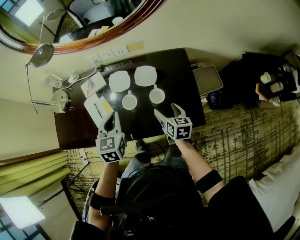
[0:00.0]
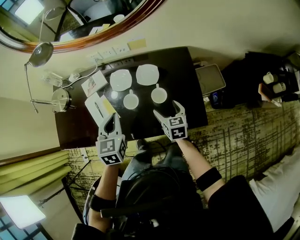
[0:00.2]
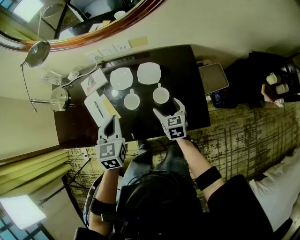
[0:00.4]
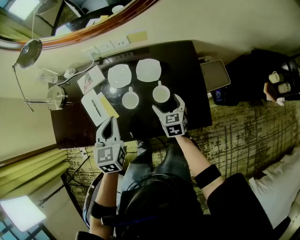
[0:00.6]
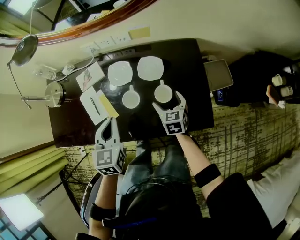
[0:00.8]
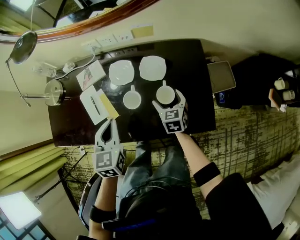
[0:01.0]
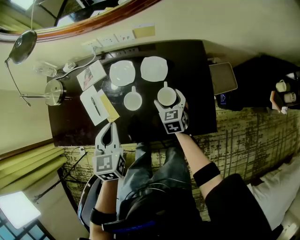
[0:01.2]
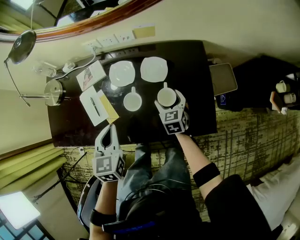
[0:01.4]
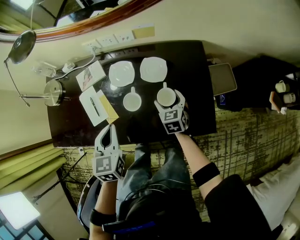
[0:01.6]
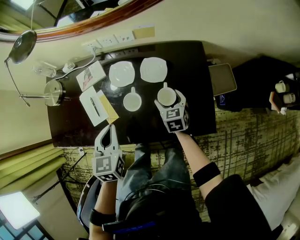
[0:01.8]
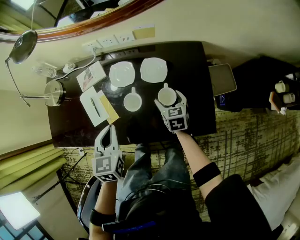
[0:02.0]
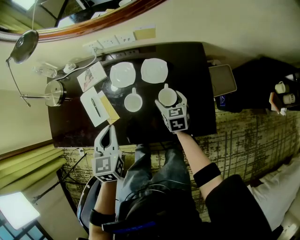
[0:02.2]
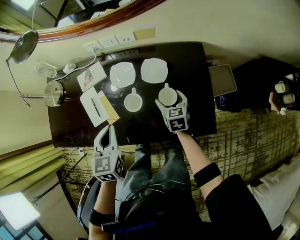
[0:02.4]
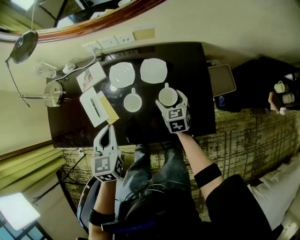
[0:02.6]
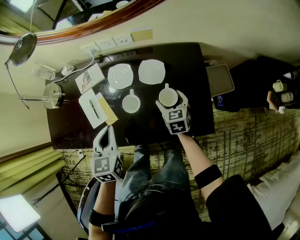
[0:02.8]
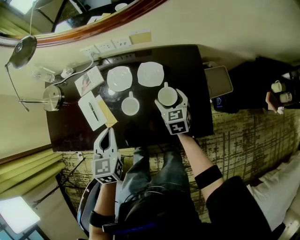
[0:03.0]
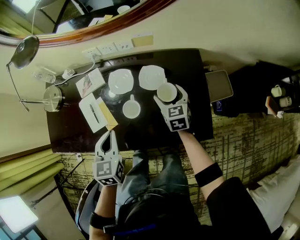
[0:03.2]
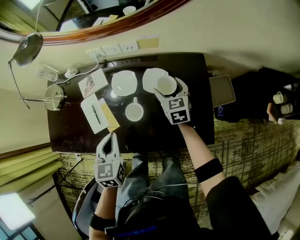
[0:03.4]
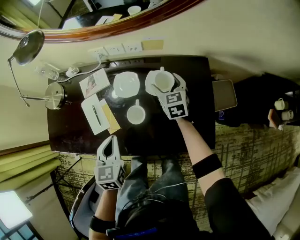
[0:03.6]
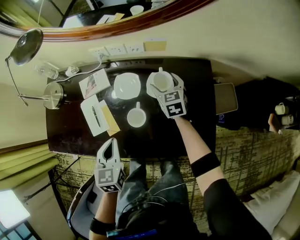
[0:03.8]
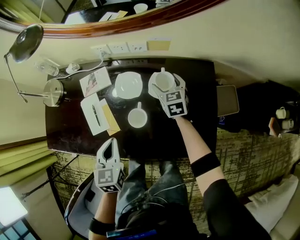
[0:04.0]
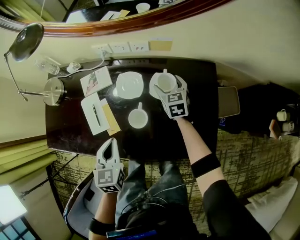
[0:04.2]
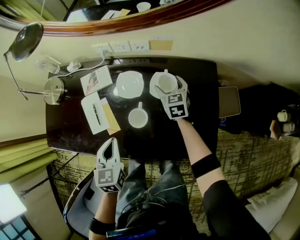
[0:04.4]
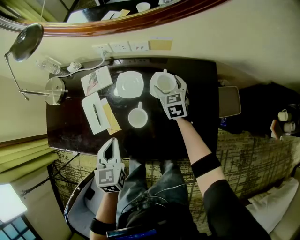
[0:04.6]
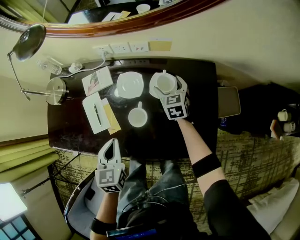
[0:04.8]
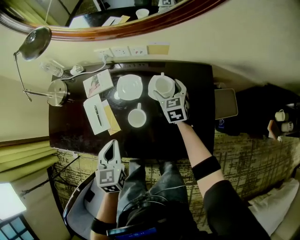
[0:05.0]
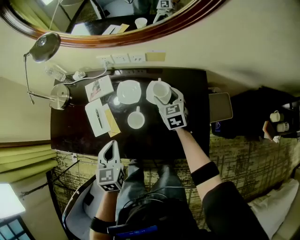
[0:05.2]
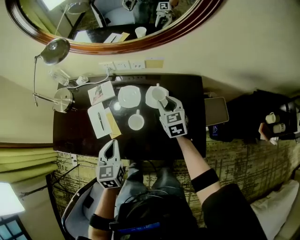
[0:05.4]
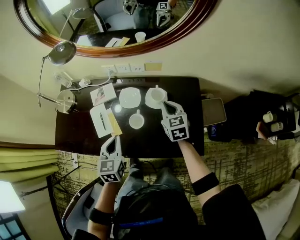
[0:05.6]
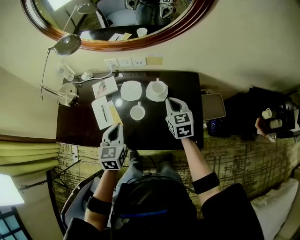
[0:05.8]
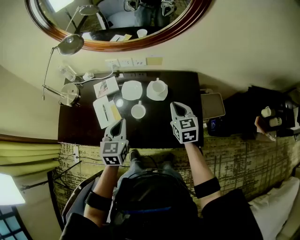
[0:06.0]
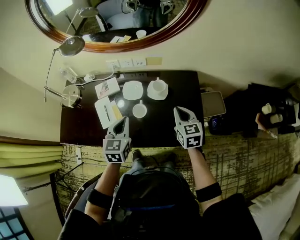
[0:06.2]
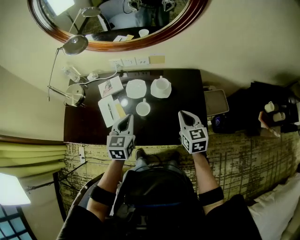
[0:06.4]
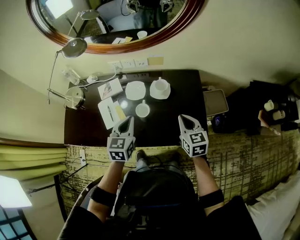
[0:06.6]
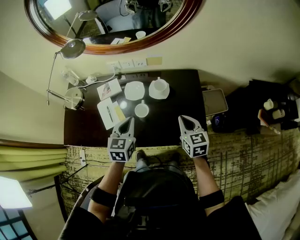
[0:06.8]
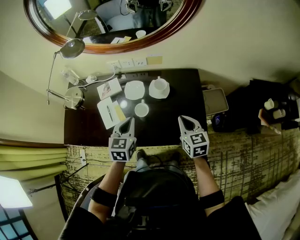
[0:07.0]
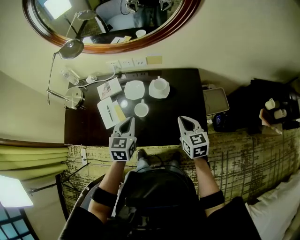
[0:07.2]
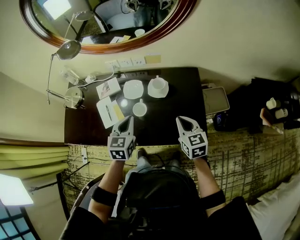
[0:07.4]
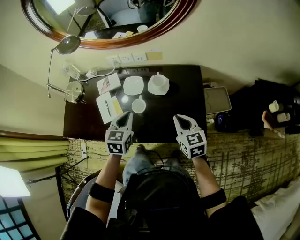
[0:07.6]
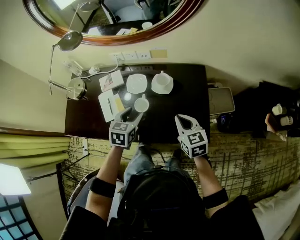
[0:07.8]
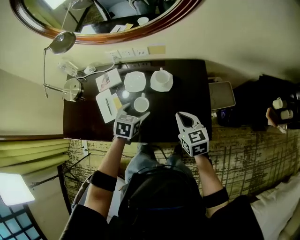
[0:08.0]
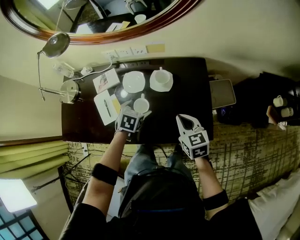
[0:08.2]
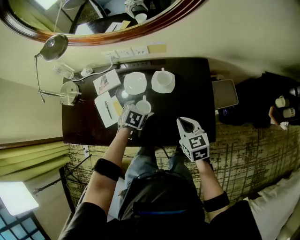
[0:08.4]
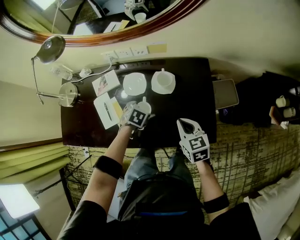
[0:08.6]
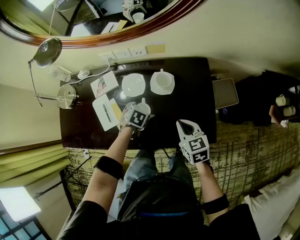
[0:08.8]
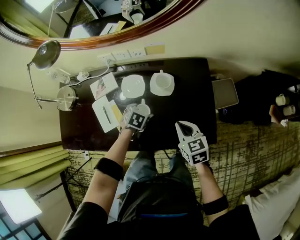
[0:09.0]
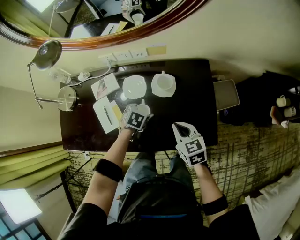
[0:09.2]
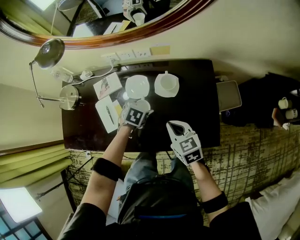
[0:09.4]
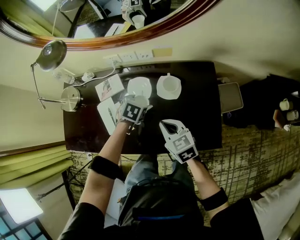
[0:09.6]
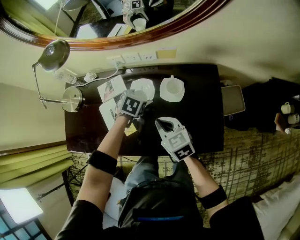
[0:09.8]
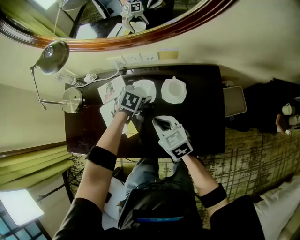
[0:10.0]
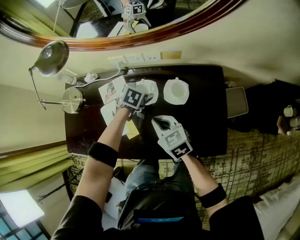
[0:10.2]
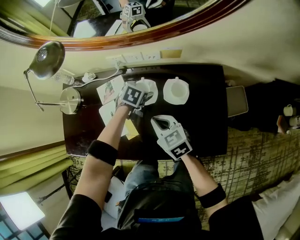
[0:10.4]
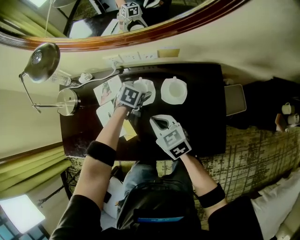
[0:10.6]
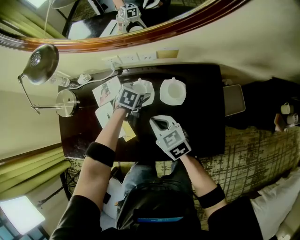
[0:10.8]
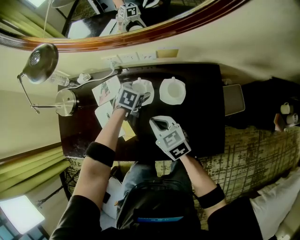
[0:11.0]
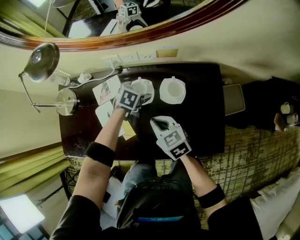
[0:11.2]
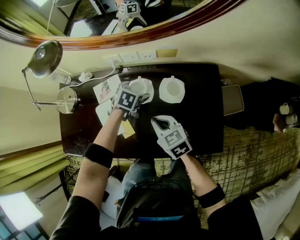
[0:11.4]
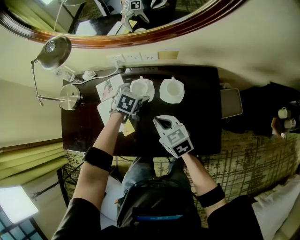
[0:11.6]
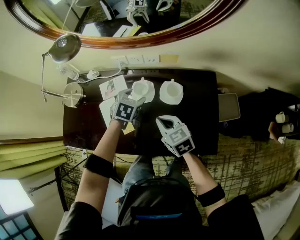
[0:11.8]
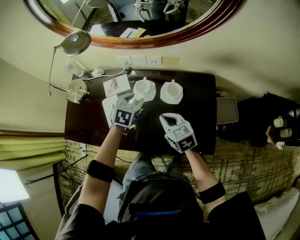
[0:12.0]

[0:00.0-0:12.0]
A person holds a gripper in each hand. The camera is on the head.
0:00.0 to 0:01.6: The left gripper shifts approximately 5 cm downward. The right gripper heads downward and forward, covering roughly 15 cm, and rotates approximately 30 degrees.
0:01.6 to 0:03.0: The right gripper ends up about 5 cm from where it was.
0:03.0 to 0:04.4: The right gripper moves forward, some 15 cm.
0:04.4 to 0:06.0: The left gripper heads upward, covering about 10 cm. The right gripper goes some 25 cm upward and backward, and closes up.
0:06.0 to 0:07.6: The right gripper is displaced backward by roughly 10 cm; the left gripper ends up roughly 5 cm from where it was.
0:07.6 to 0:09.0: The right gripper goes some 10 cm downward. Meanwhile the left gripper goes approximately 20 cm downward, angles its fingers downward, by about 30 degrees, and opens.
0:09.0 to 0:10.4: The right gripper goes some 20 cm to the left and forward. Meanwhile the left gripper is displaced forward by approximately 15 cm.
0:10.4 to 0:12.0: The left gripper moves upward and backward, approximately 15 cm, and closes its fingers. Meanwhile the right gripper is displaced to the right by some 5 cm.

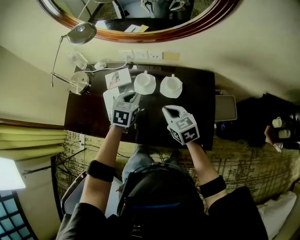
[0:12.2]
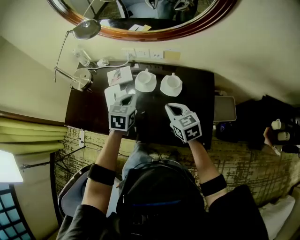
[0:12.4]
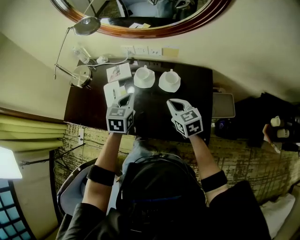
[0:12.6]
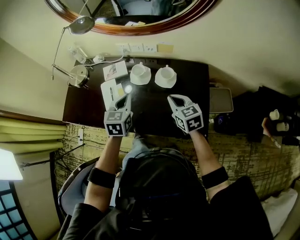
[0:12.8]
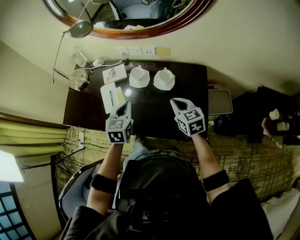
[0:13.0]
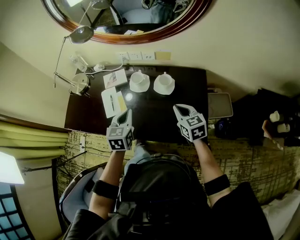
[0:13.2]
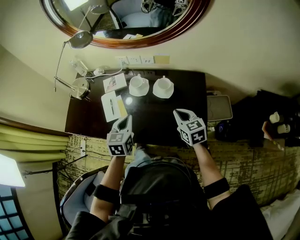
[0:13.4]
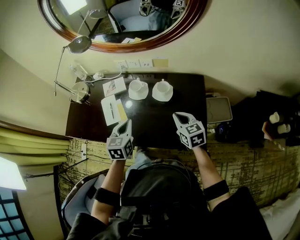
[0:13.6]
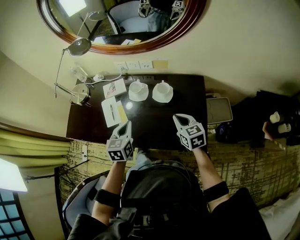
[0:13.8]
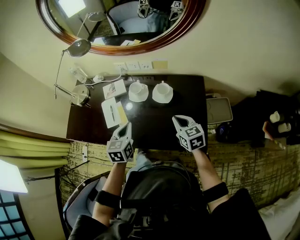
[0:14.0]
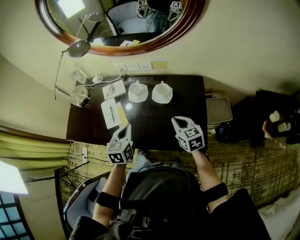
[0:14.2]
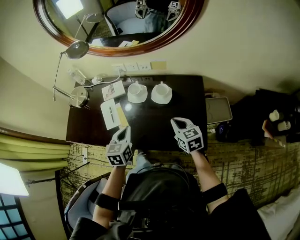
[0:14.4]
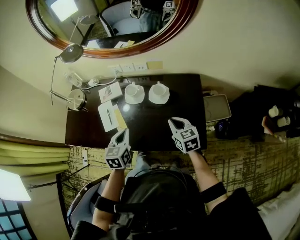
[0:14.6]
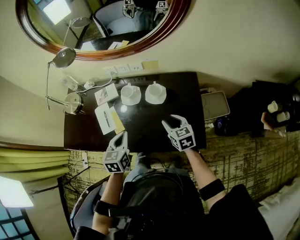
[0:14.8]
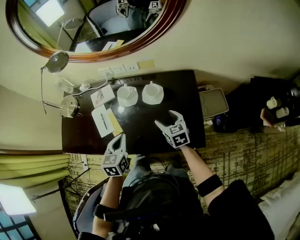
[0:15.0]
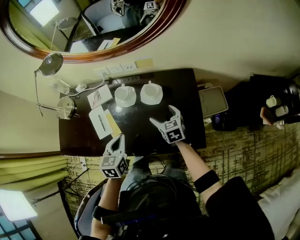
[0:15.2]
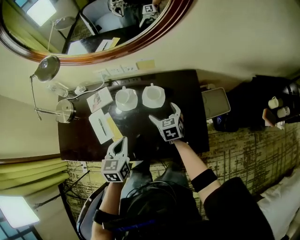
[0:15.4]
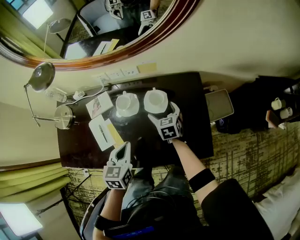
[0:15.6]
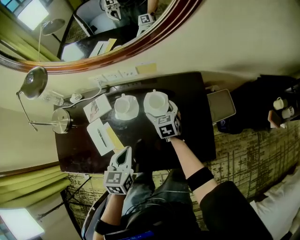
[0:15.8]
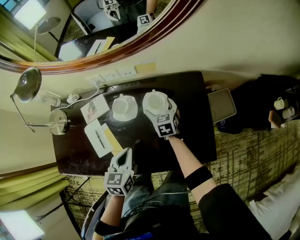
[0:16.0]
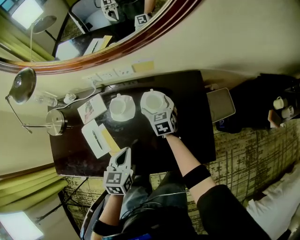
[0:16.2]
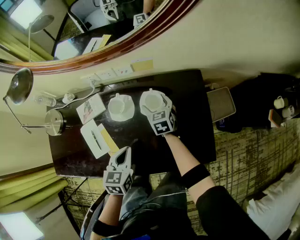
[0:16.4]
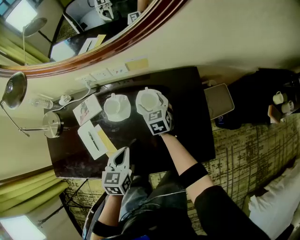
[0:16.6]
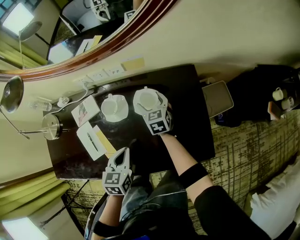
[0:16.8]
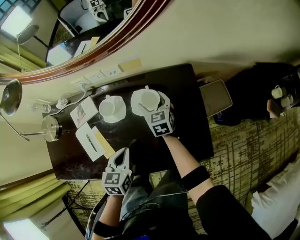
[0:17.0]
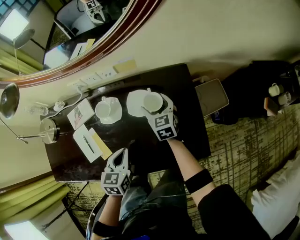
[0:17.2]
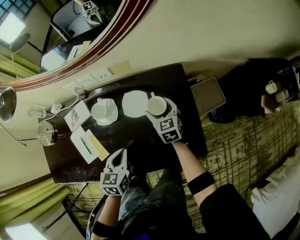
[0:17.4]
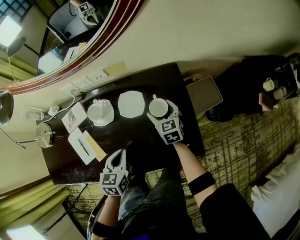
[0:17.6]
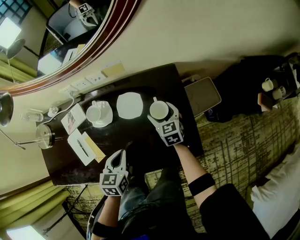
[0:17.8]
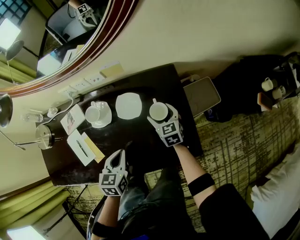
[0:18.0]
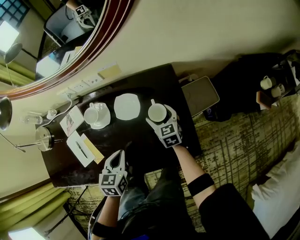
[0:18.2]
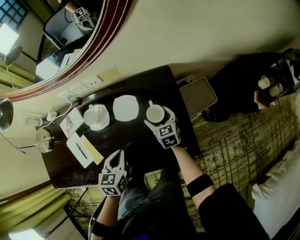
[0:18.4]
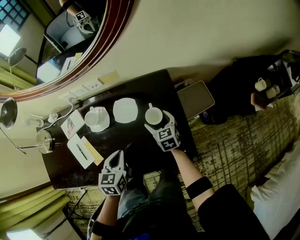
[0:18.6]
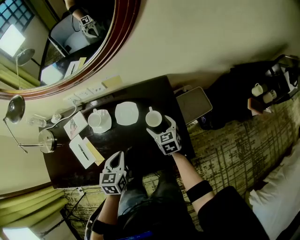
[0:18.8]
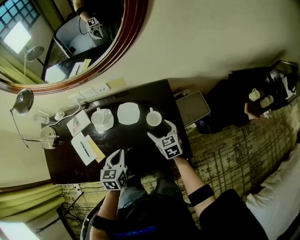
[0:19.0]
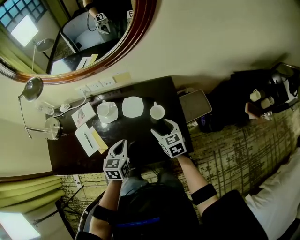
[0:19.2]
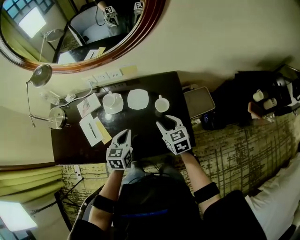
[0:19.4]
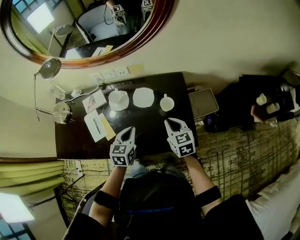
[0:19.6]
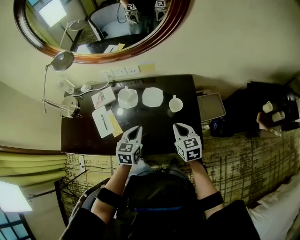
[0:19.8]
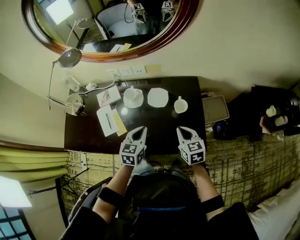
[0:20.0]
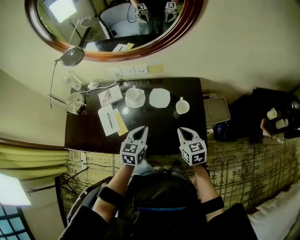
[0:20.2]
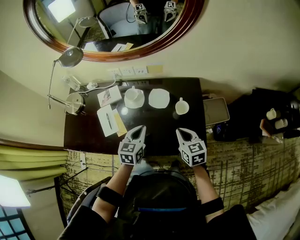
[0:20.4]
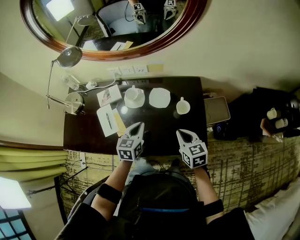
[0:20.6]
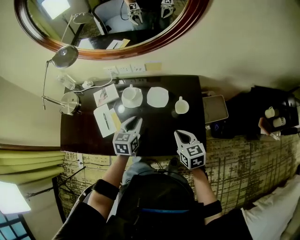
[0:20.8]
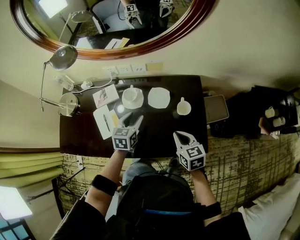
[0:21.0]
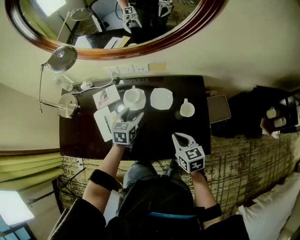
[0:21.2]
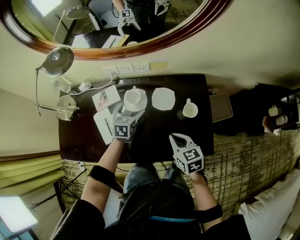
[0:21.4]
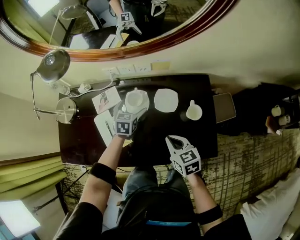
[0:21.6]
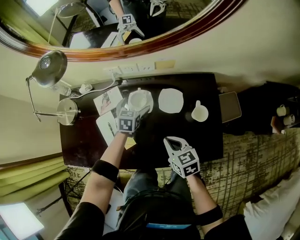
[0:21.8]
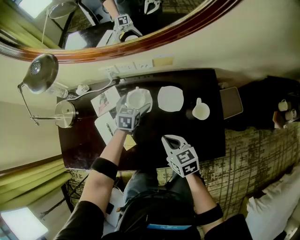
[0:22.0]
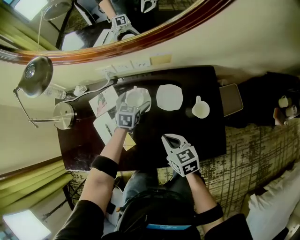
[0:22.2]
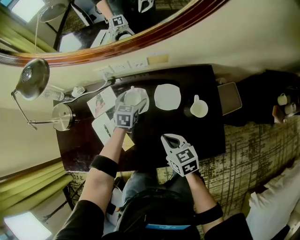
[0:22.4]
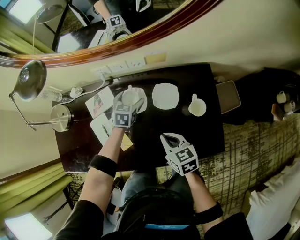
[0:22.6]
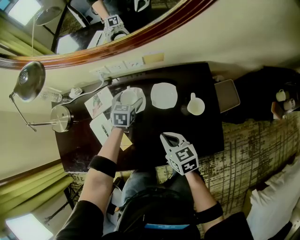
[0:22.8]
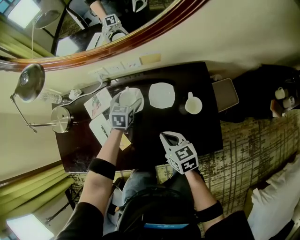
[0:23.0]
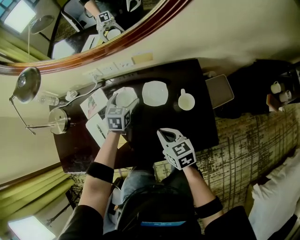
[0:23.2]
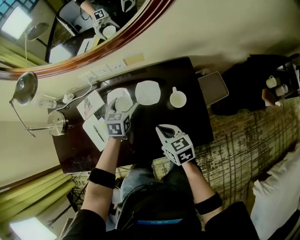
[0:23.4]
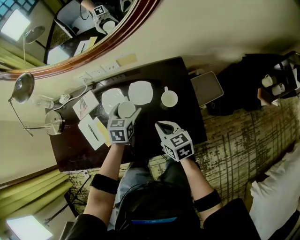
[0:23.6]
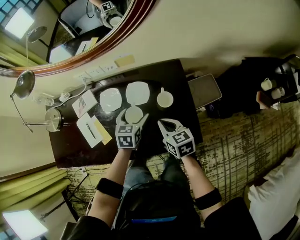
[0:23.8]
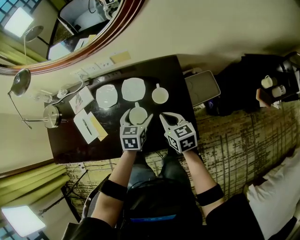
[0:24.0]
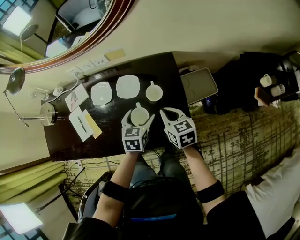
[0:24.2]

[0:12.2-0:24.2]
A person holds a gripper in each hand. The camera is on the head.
0:12.2 to 0:13.8: The left gripper is displaced backward by about 15 cm, and turns by roughly 20 degrees, while the right gripper is displaced to the right and backward by some 10 cm.
0:13.8 to 0:15.2: The right gripper is displaced downward and forward by approximately 10 cm, and opens up.
0:15.2 to 0:16.6: The right gripper heads forward and downward, covering roughly 20 cm, while the left gripper moves downward and forward, approximately 10 cm.
0:16.6 to 0:18.2: The right gripper heads to the right and backward, covering roughly 15 cm, while the left gripper heads to the right, covering about 5 cm.
0:18.2 to 0:19.8: The right gripper shifts about 25 cm upward and backward, and closes up; the left gripper moves upward, some 10 cm.
0:19.8 to 0:21.2: The right gripper moves to the left, roughly 10 cm. The left gripper goes roughly 15 cm forward and to the left, and opens up.
0:21.2 to 0:22.6: The right gripper travels to the left, downward and forward by about 10 cm. Meanwhile the left gripper shifts some 15 cm forward and downward.
0:22.6 to 0:24.2: The right gripper shifts about 20 cm to the right, while the left gripper shifts roughly 30 cm to the right and backward.
